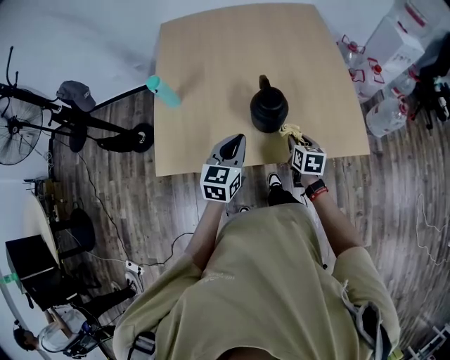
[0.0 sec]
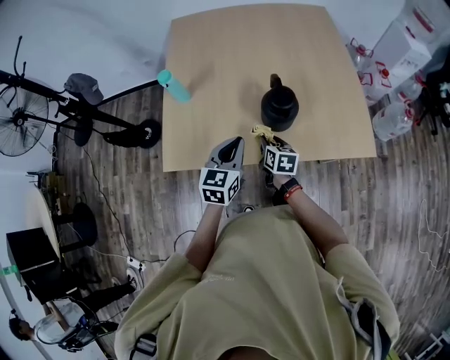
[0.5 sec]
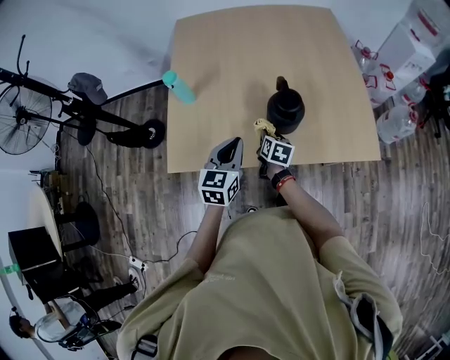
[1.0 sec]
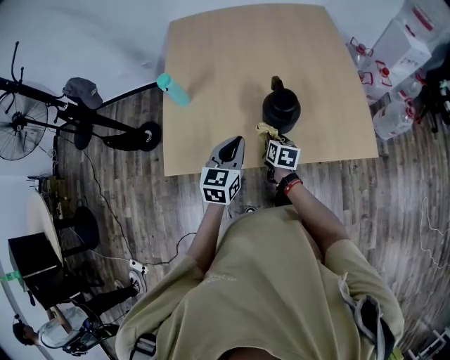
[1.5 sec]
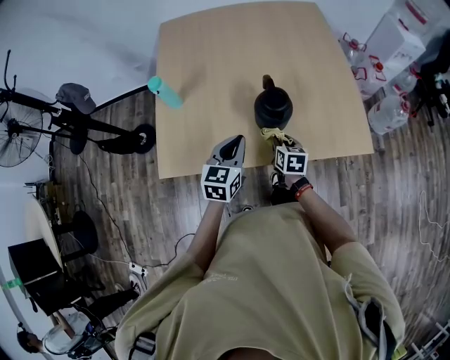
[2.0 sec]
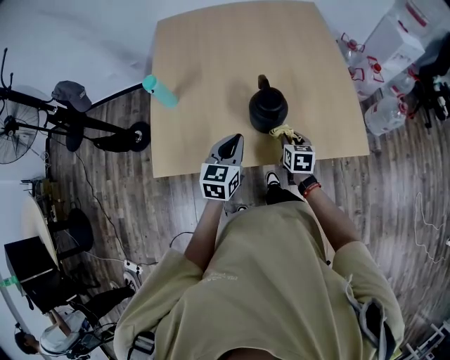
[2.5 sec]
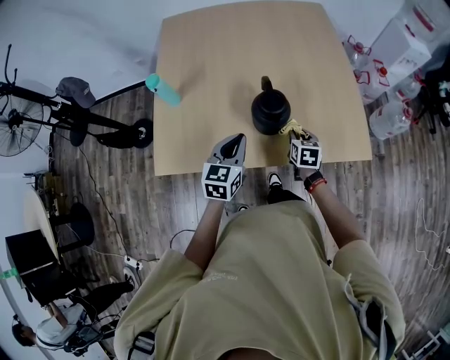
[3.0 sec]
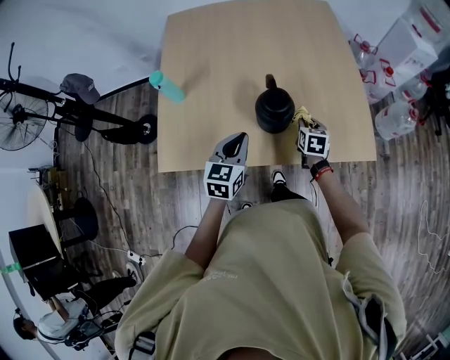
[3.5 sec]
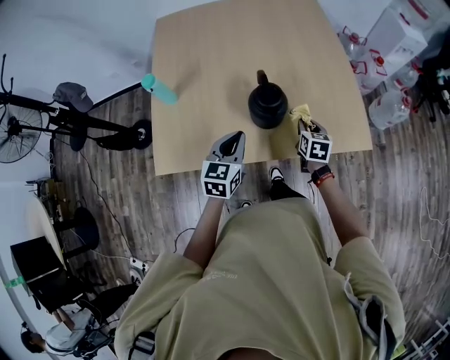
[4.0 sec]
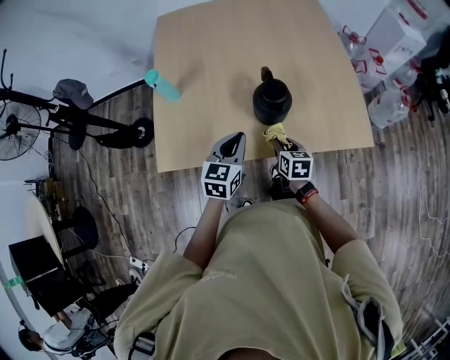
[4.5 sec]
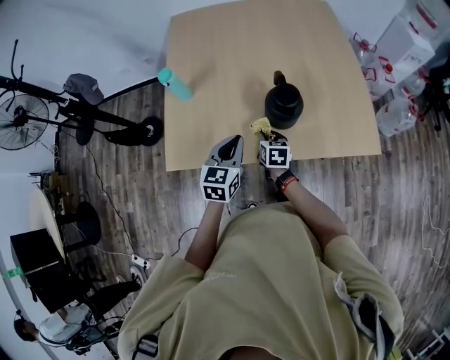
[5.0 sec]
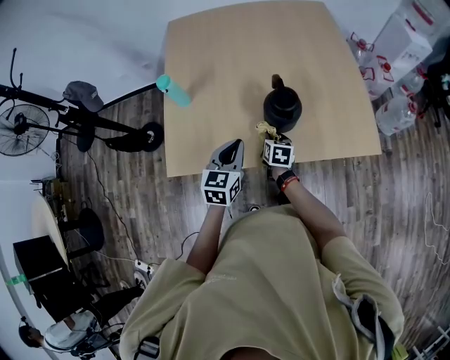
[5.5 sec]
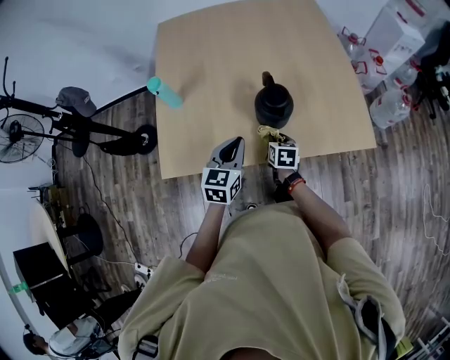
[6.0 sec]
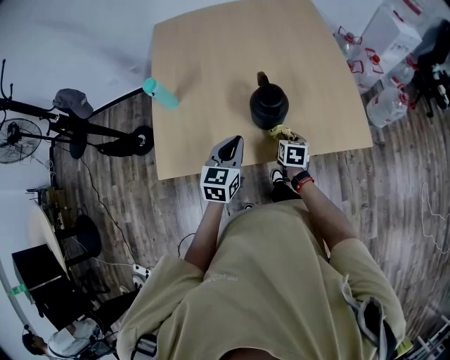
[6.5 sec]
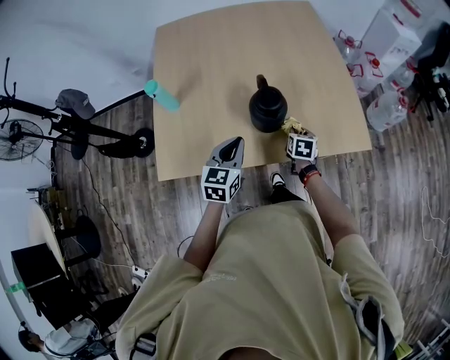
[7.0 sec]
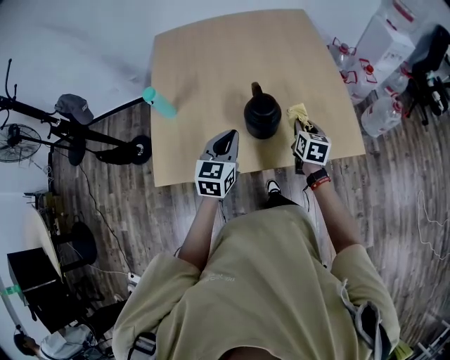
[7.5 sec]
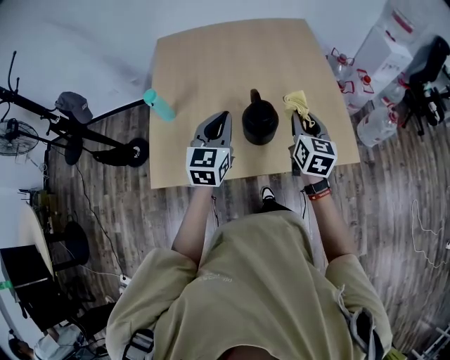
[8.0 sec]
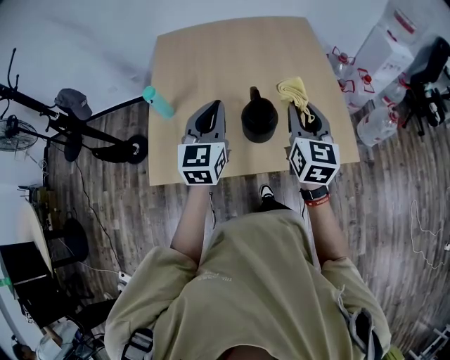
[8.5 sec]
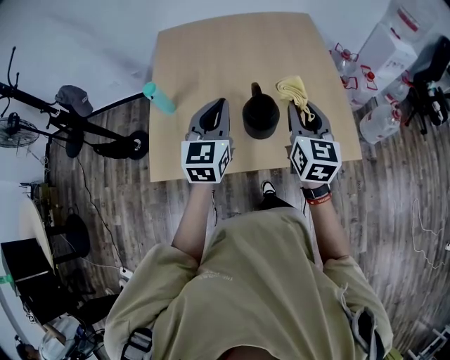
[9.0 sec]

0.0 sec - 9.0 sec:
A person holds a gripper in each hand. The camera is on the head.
0.0 sec - 2.0 sec: The right gripper shifts approximately 5 cm to the left.
2.0 sec - 4.5 sec: The right gripper goes forward and returns, roughly 10 cm each way.
4.5 sec - 7.0 sec: The right gripper goes roughly 10 cm to the right and forward.
7.0 sec - 9.0 sec: The left gripper heads upward, covering about 15 cm. Meanwhile the right gripper moves upward, about 30 cm, and tilts its fingers some 40 degrees upward.

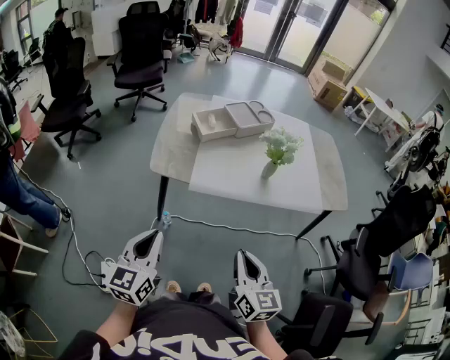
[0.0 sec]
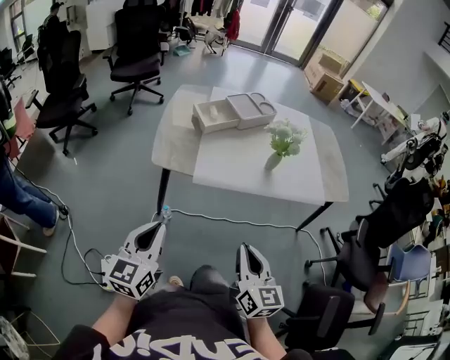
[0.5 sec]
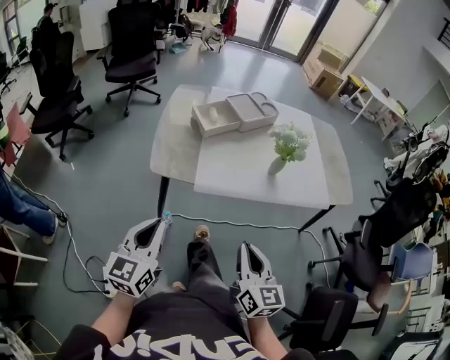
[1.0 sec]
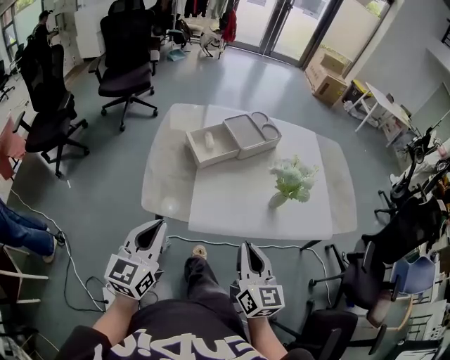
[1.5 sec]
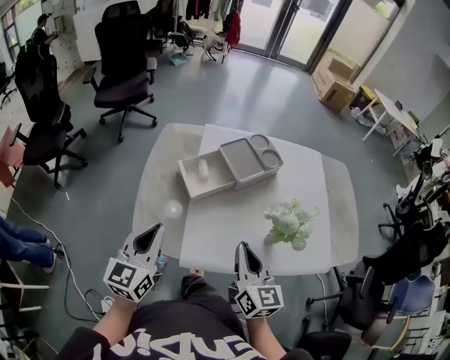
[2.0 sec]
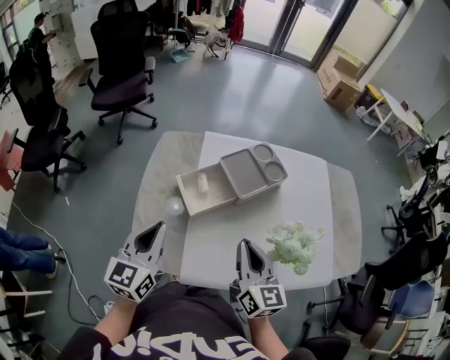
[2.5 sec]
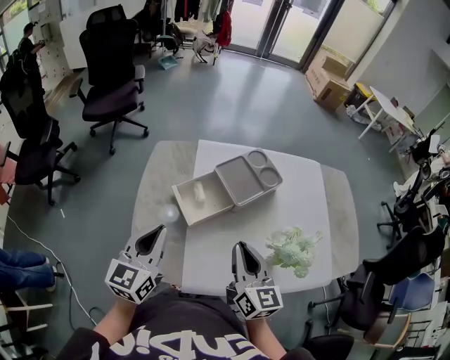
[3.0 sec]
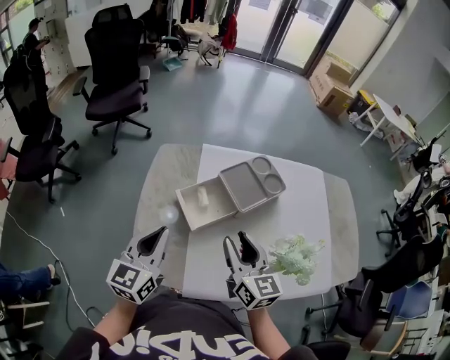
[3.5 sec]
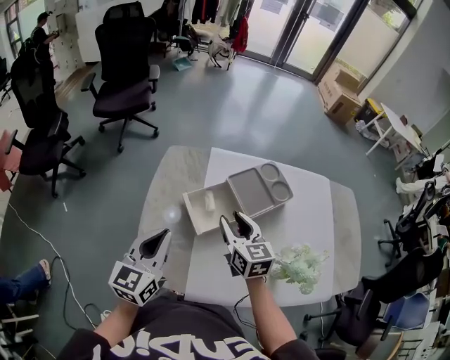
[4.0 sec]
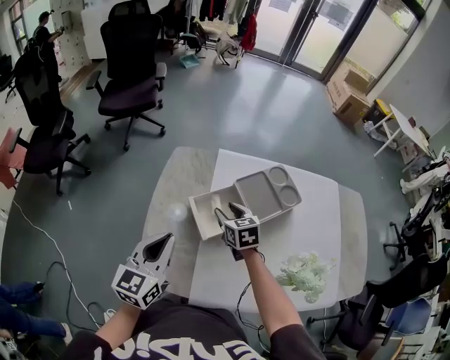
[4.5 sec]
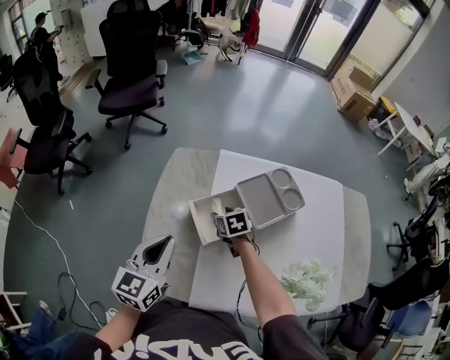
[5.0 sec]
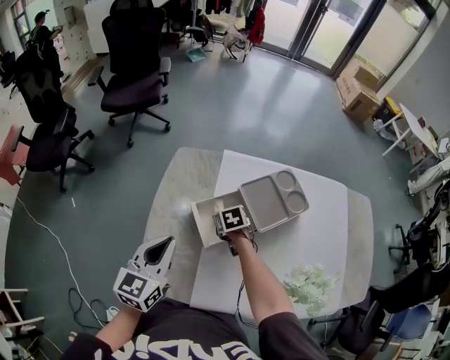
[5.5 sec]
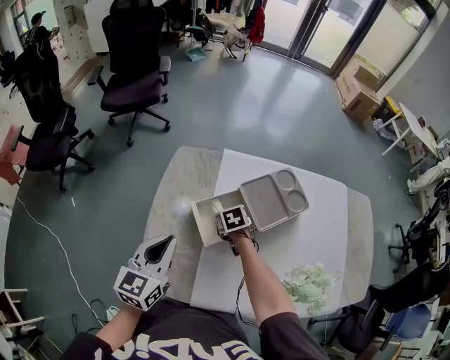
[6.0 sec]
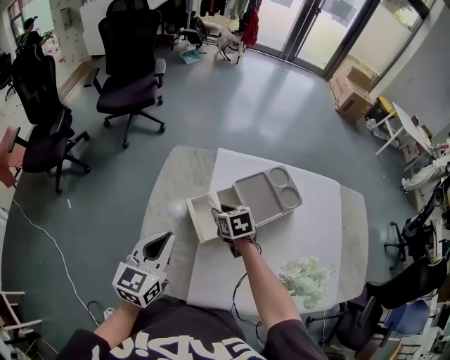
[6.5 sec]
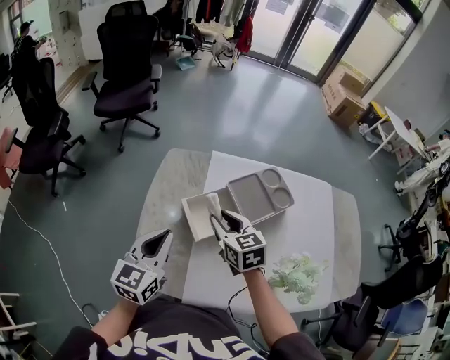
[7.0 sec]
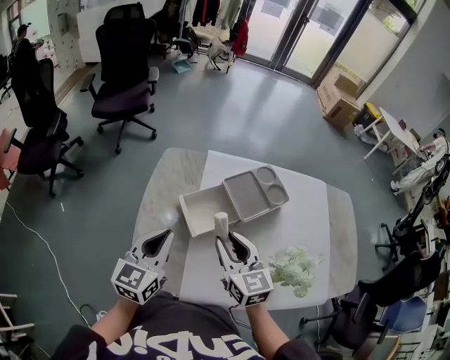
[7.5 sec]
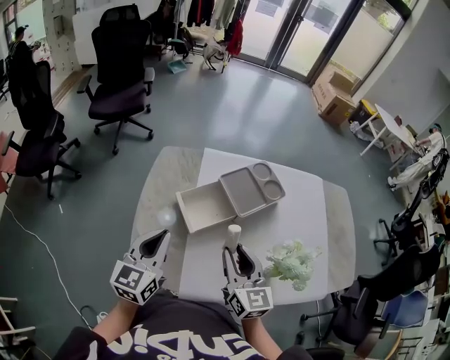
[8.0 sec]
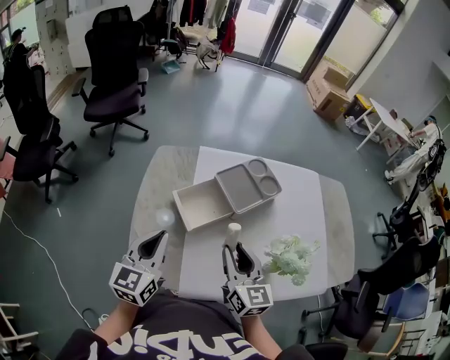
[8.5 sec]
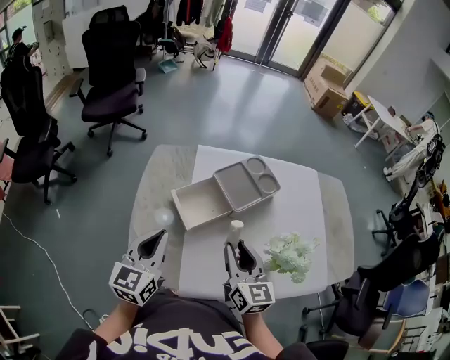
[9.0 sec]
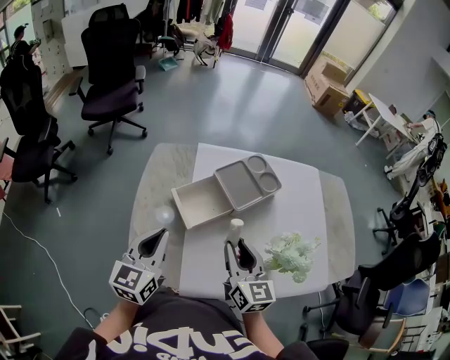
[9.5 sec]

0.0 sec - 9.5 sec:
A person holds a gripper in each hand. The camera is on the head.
0.0 sec - 2.0 sec: The grippers both shift forward by about 35 cm.
2.0 sec - 4.0 sec: The right gripper heads forward and to the left, covering roughly 25 cm, and opens. Meanwhile the left gripper is displaced forward by roughly 10 cm.
4.0 sec - 5.5 sec: The left gripper ends up approximately 5 cm from where it was. The right gripper is displaced downward and forward by about 25 cm, and tips its fingers downward by about 40 degrees.
5.5 sec - 7.5 sec: The right gripper is displaced upward and backward by about 30 cm, and points its fingers approximately 50 degrees further upward.
7.5 sec - 9.5 sec: The right gripper shifts approximately 5 cm to the right.

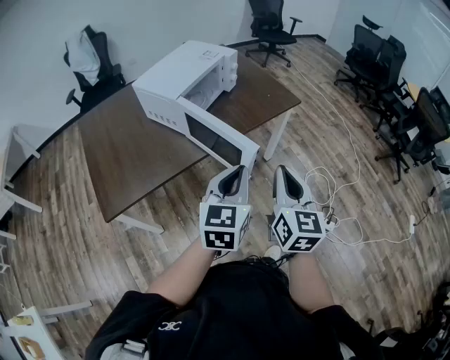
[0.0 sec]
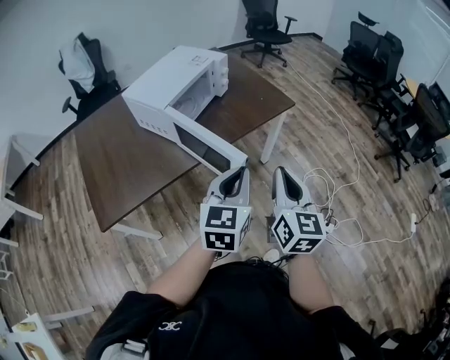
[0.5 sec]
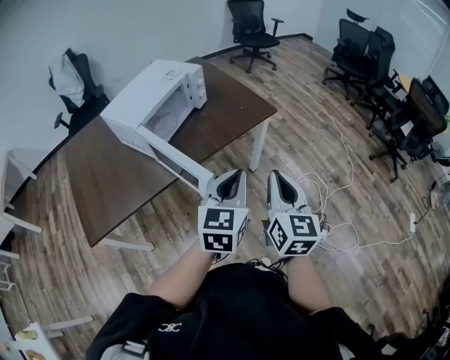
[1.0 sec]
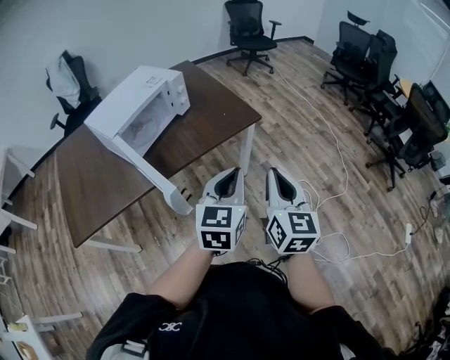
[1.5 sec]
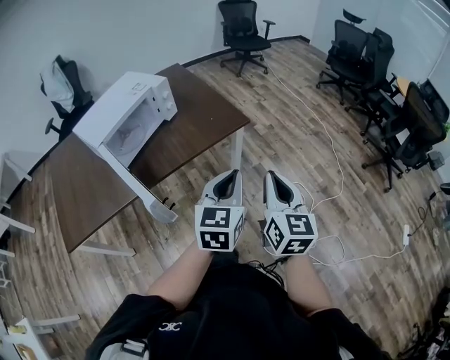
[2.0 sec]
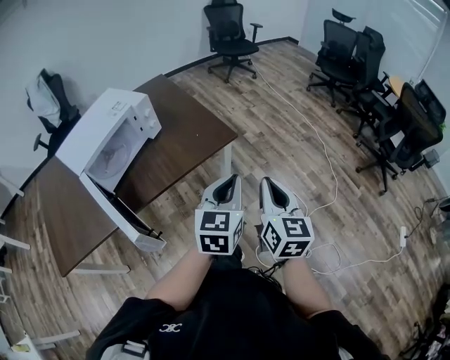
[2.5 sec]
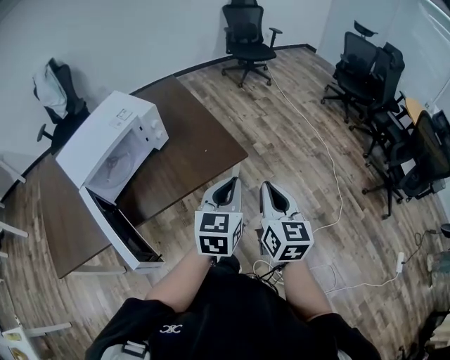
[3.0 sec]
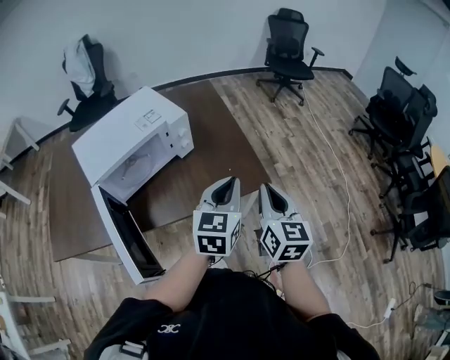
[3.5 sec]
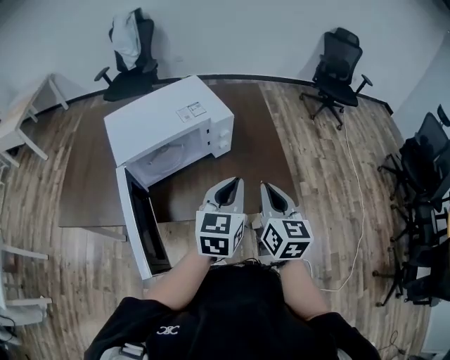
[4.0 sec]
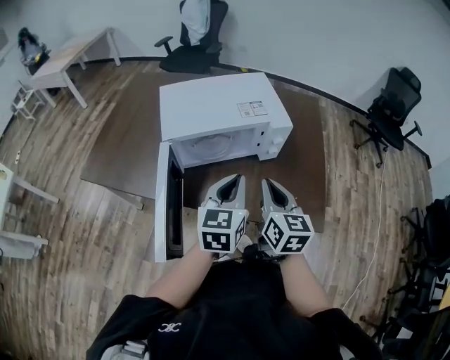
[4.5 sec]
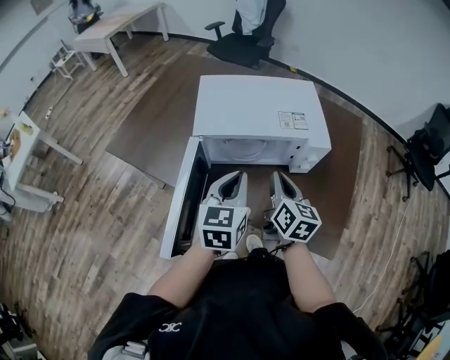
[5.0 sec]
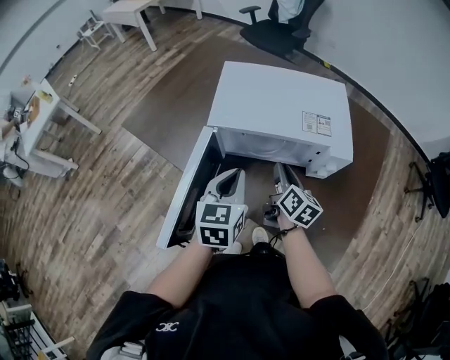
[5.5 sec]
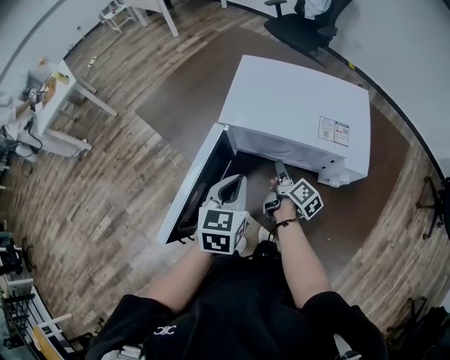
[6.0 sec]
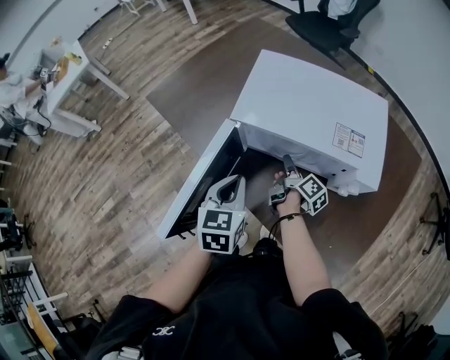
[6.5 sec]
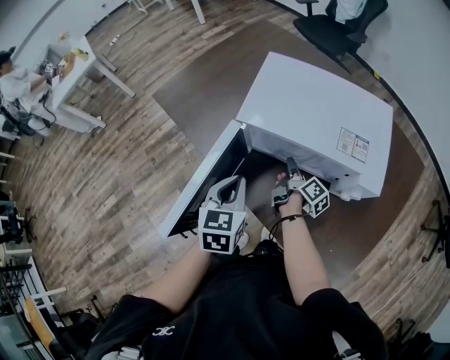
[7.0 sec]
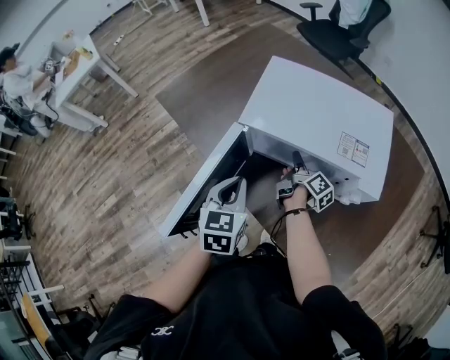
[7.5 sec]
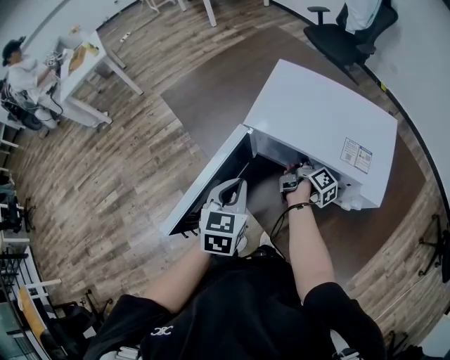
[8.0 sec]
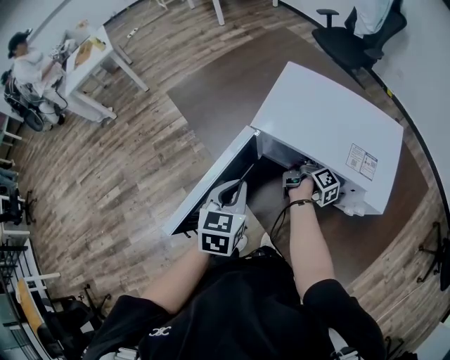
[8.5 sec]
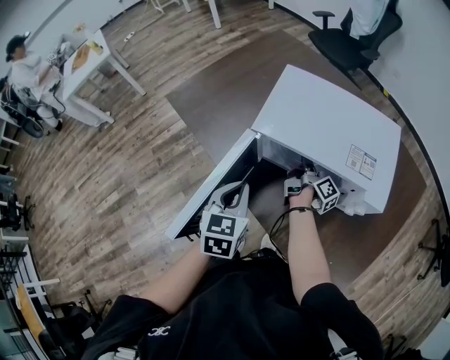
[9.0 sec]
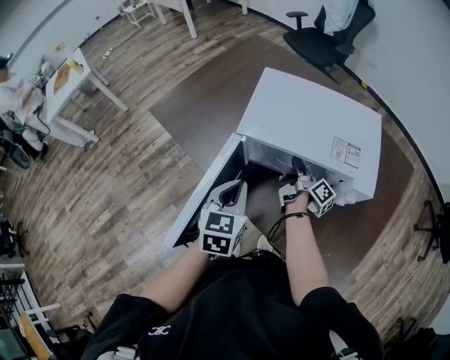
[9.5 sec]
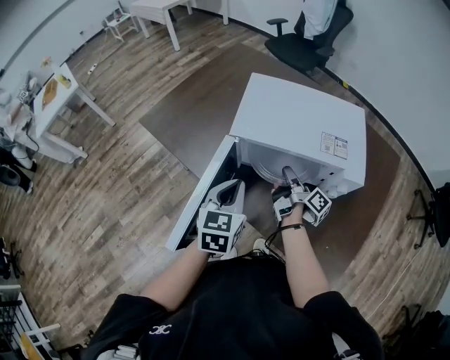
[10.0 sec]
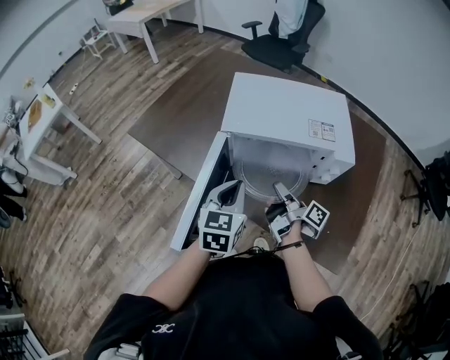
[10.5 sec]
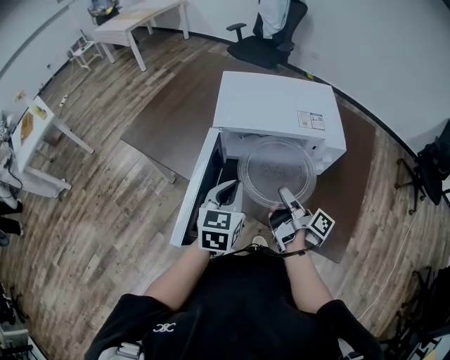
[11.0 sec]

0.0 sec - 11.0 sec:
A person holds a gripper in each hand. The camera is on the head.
0.0 sec - 2.0 sec: The grippers both shift to the right and forward by some 30 cm.
2.0 sec - 3.5 sec: The two grippers go roughly 30 cm forward.
3.5 sec - 5.5 sec: The right gripper shifts by approximately 40 cm, and changes its angle by roughly 50 degrees; the left gripper moves approximately 35 cm, and rotates some 60 degrees.
5.5 sec - 7.5 sec: The left gripper shifts by roughly 5 cm. Meanwhile the right gripper is displaced forward and downward by roughly 15 cm, and swivels some 40 degrees.
7.5 sec - 9.0 sec: The right gripper closes its fingers.
9.0 sec - 11.0 sec: The right gripper shifts approximately 25 cm backward and upward. Meanwhile the left gripper ends up about 5 cm from where it was, and turns by about 20 degrees.
